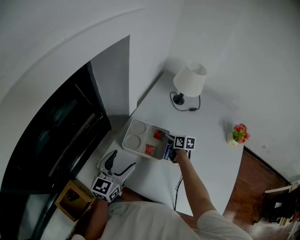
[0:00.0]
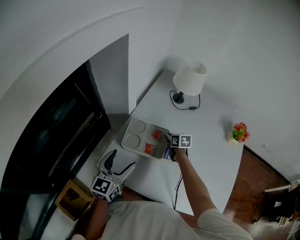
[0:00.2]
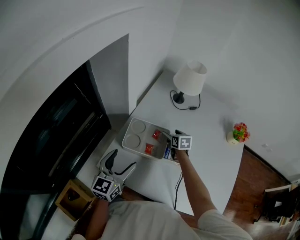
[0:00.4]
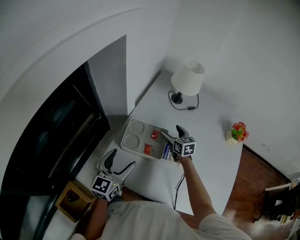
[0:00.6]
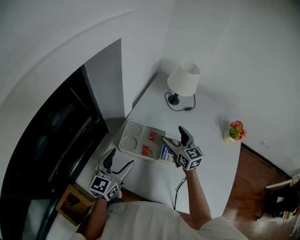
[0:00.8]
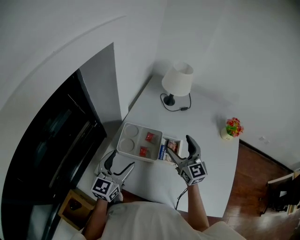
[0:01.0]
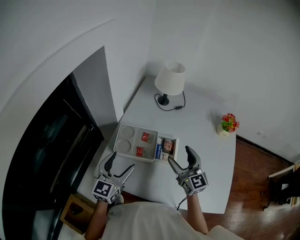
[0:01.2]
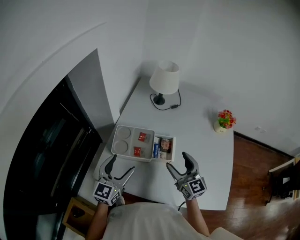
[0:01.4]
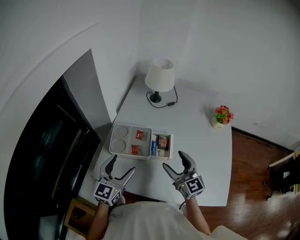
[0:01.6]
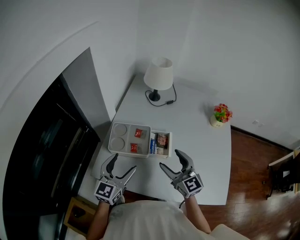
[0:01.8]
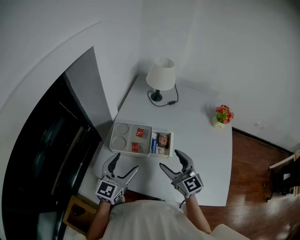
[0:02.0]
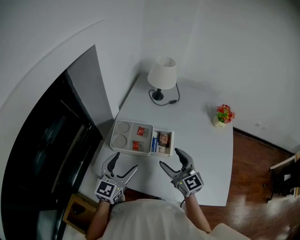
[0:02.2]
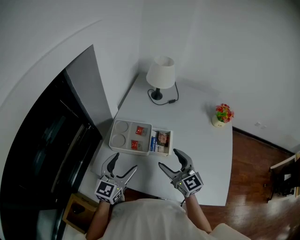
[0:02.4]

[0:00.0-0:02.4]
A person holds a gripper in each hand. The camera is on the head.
0:00.0 to 0:01.2: The right gripper moves upward and backward, approximately 25 cm, angles its fingers upward, by roughly 30 degrees, and opens.
0:01.2 to 0:02.4: The left gripper moves approximately 5 cm. Meanwhile the right gripper goes roughly 5 cm backward.

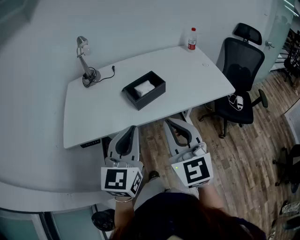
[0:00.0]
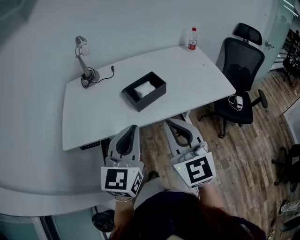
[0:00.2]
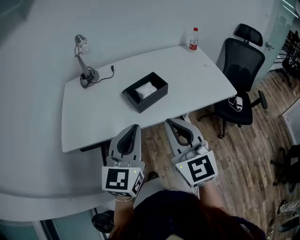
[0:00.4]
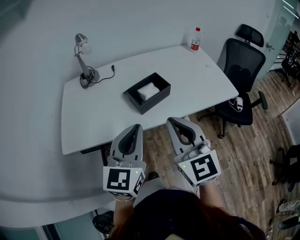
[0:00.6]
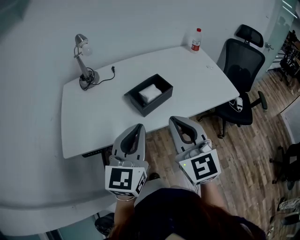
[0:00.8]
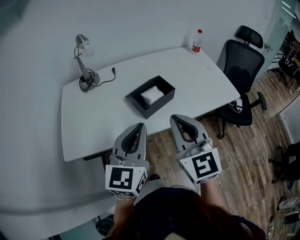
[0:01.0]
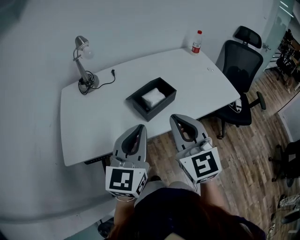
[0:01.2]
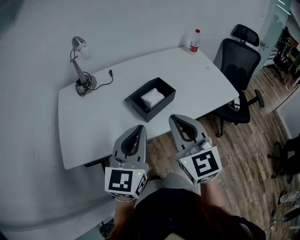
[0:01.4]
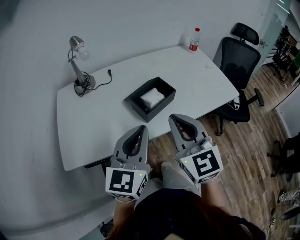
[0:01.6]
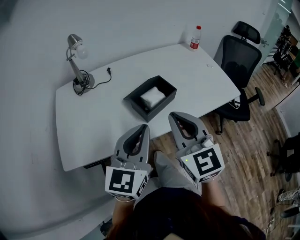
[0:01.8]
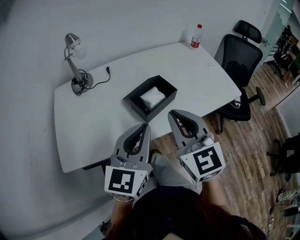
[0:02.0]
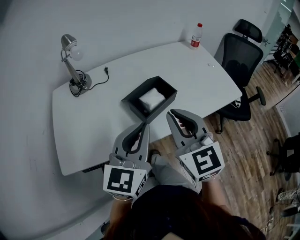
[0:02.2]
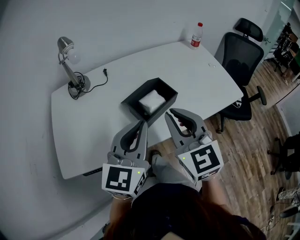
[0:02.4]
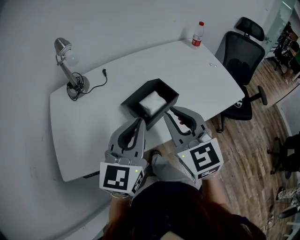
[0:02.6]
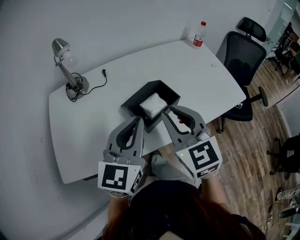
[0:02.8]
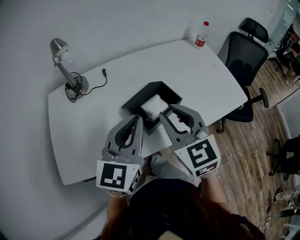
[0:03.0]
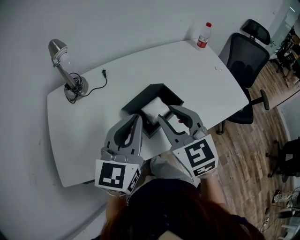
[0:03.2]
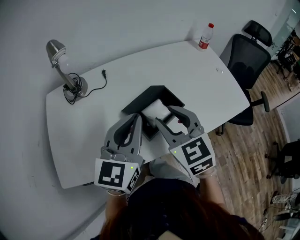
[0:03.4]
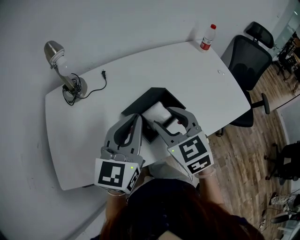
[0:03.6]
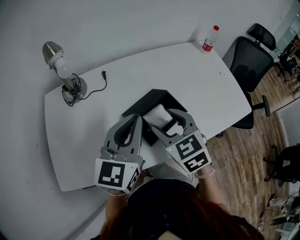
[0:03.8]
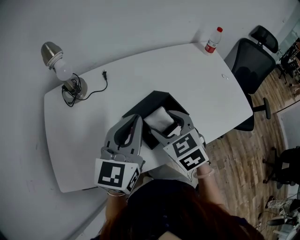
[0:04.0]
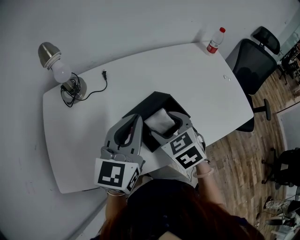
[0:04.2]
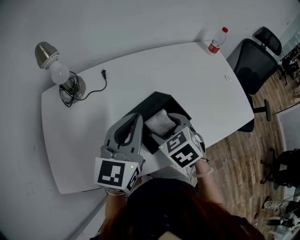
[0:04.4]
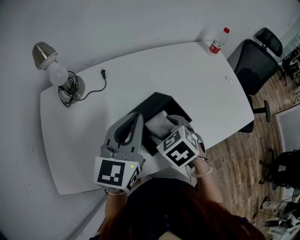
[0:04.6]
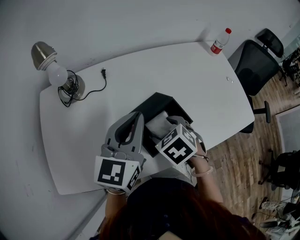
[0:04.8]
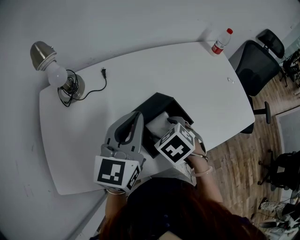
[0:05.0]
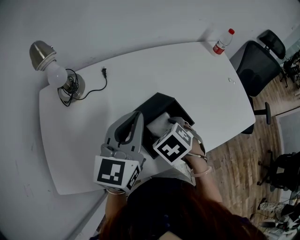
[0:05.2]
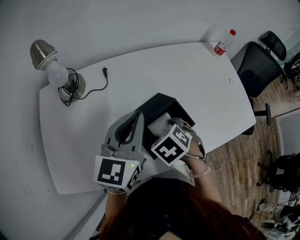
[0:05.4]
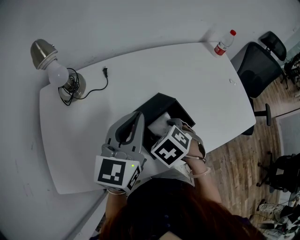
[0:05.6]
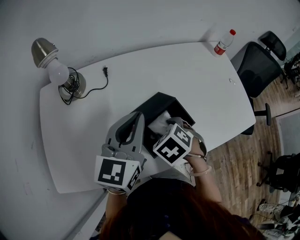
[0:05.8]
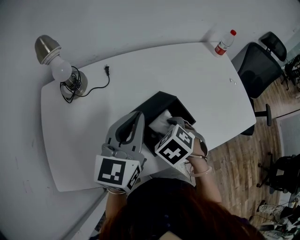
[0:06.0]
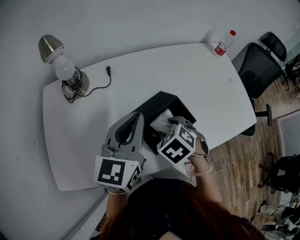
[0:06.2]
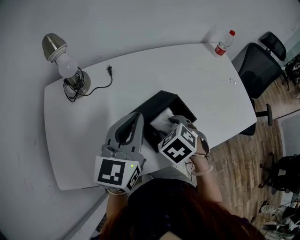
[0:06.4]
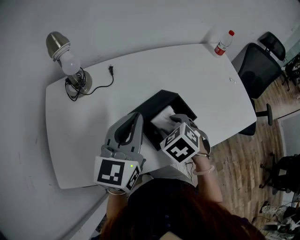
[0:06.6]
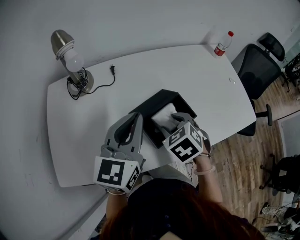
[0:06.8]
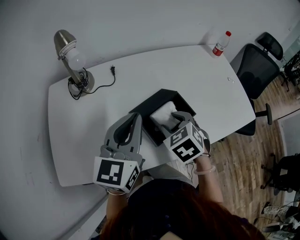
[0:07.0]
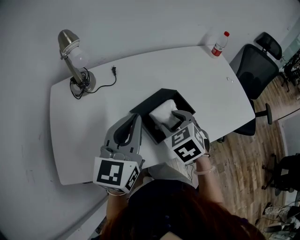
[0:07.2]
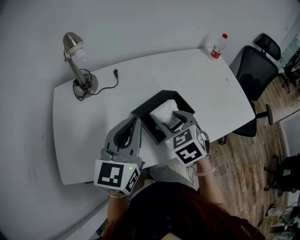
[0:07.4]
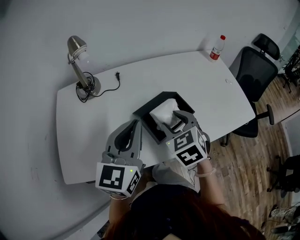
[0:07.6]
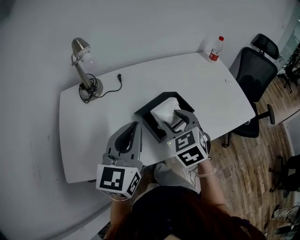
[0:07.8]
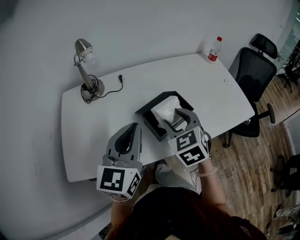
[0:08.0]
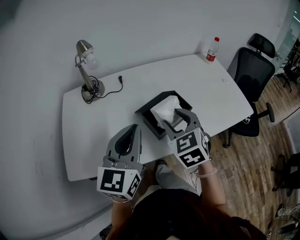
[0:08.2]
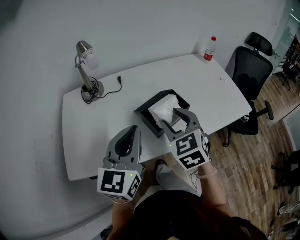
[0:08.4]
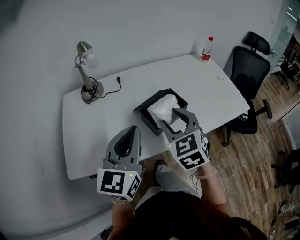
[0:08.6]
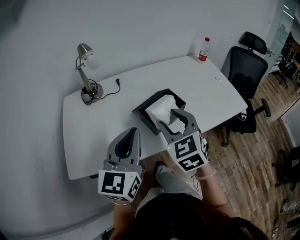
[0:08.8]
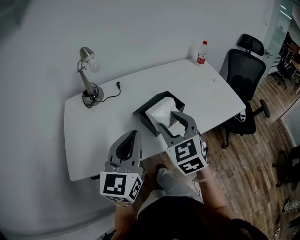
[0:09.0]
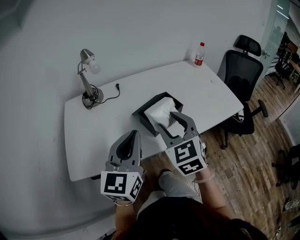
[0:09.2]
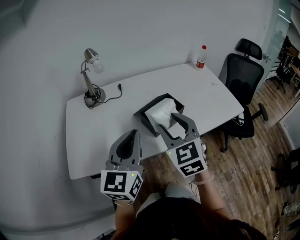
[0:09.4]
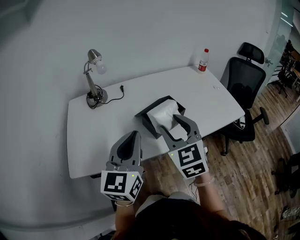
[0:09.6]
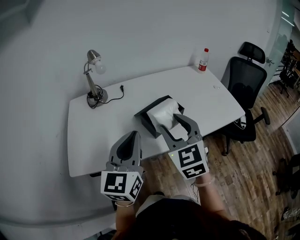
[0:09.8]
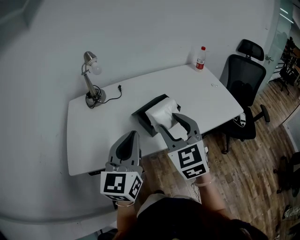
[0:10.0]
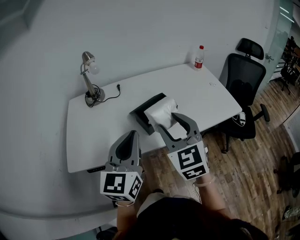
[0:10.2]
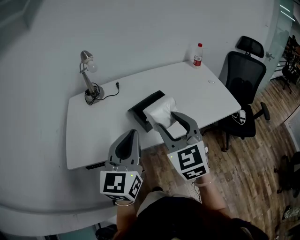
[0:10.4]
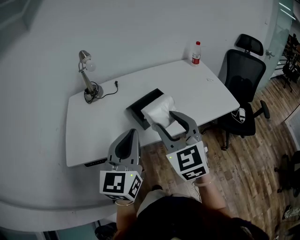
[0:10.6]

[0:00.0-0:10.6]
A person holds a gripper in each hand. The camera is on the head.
0:00.0 to 0:01.6: The left gripper travels forward by approximately 10 cm, while the right gripper goes some 10 cm forward and to the left.
0:01.6 to 0:03.0: The two grippers go some 10 cm forward.
0:03.0 to 0:04.6: The left gripper is displaced forward by about 10 cm; the right gripper heads downward and forward, covering about 20 cm, points its fingers approximately 40 degrees further downward, and opens up.
0:04.6 to 0:06.0: The grippers move only a little.
0:06.0 to 0:07.6: The left gripper heads backward, covering about 10 cm. The right gripper is displaced upward by about 10 cm, and rotates approximately 30 degrees.
0:07.6 to 0:09.0: The left gripper travels backward by approximately 10 cm. The right gripper shifts about 10 cm backward and upward.
0:09.0 to 0:10.6: The right gripper goes approximately 10 cm backward and to the right. Meanwhile the left gripper heads to the right and backward, covering approximately 10 cm.

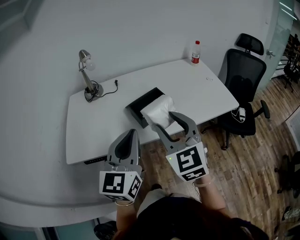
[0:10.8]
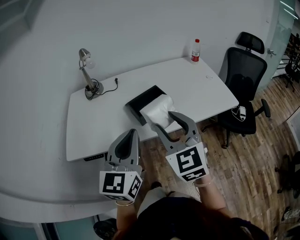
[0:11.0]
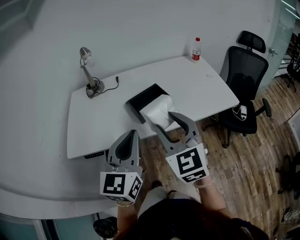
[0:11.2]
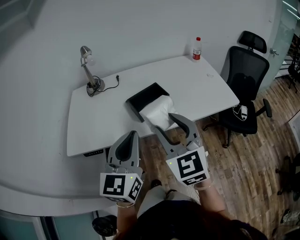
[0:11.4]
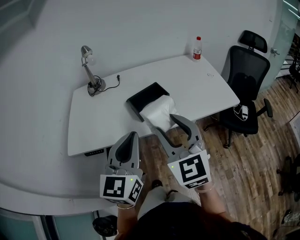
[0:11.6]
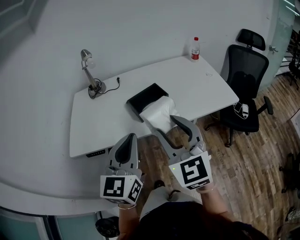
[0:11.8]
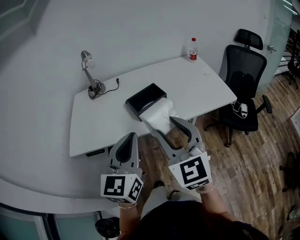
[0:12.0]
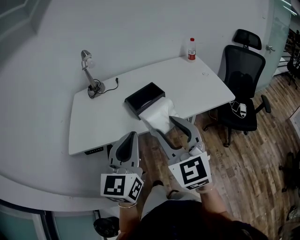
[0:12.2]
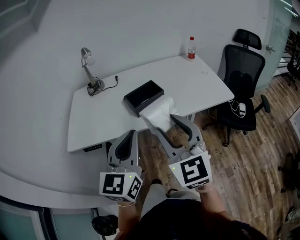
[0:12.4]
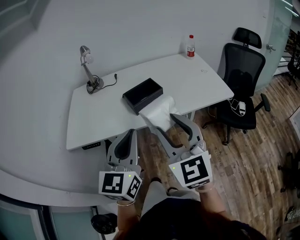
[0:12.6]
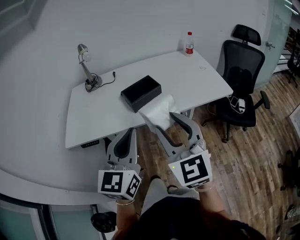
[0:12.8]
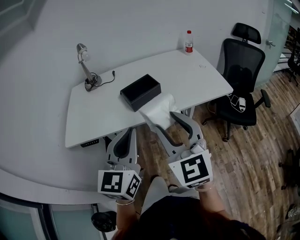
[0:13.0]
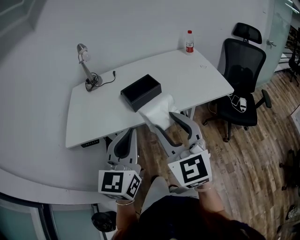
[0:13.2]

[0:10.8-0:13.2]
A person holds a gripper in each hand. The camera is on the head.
0:10.8 to 0:12.0: Both grippers move backward, roughly 5 cm.
0:12.0 to 0:13.2: There are only small adjustments of the grippers.

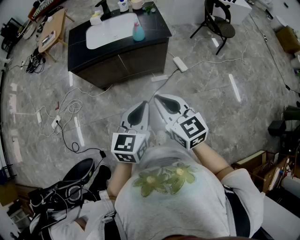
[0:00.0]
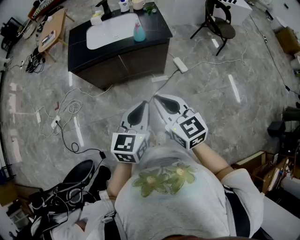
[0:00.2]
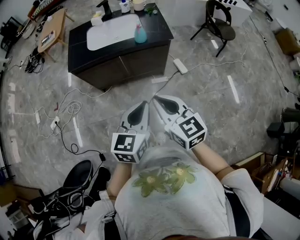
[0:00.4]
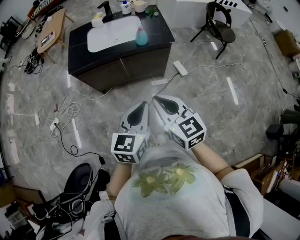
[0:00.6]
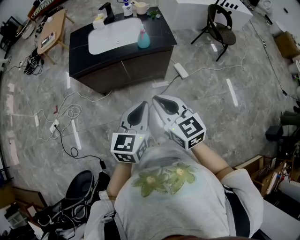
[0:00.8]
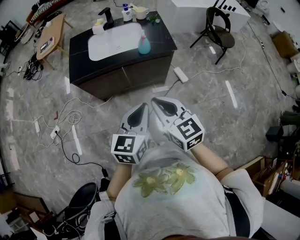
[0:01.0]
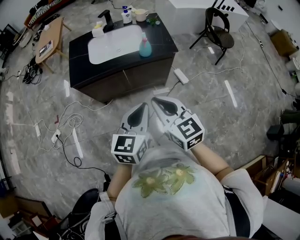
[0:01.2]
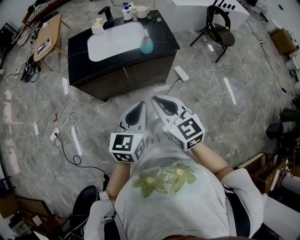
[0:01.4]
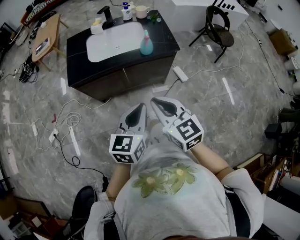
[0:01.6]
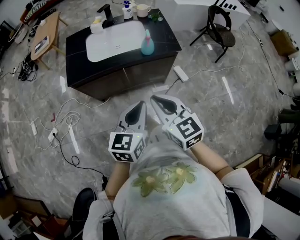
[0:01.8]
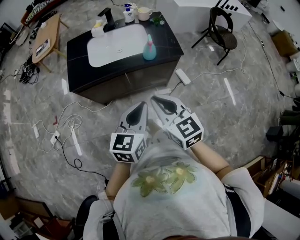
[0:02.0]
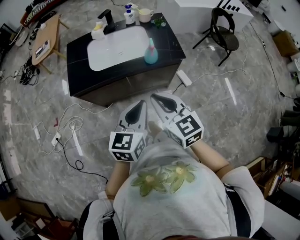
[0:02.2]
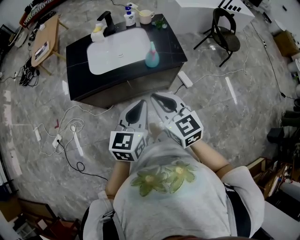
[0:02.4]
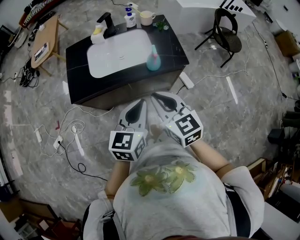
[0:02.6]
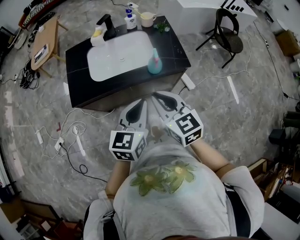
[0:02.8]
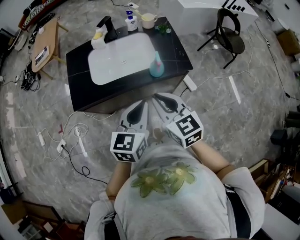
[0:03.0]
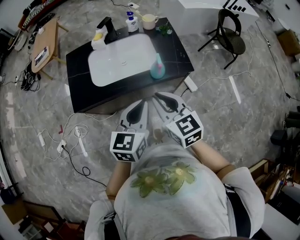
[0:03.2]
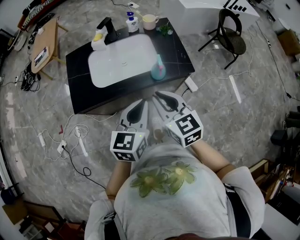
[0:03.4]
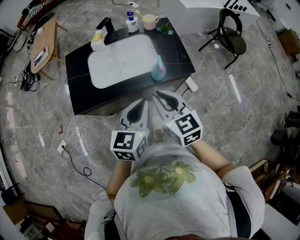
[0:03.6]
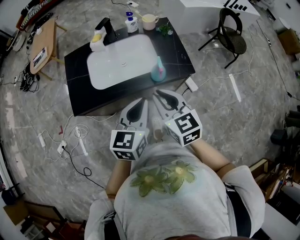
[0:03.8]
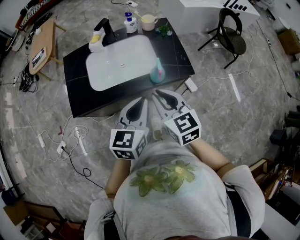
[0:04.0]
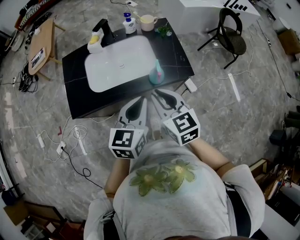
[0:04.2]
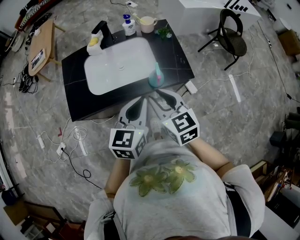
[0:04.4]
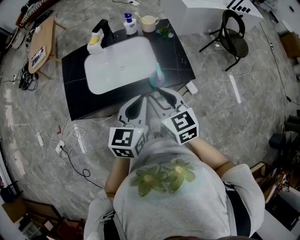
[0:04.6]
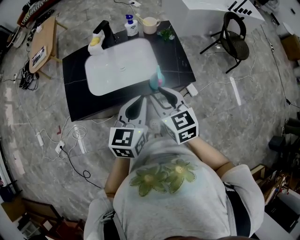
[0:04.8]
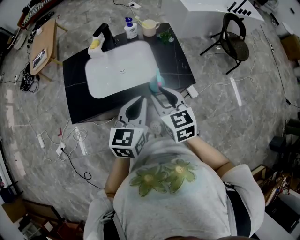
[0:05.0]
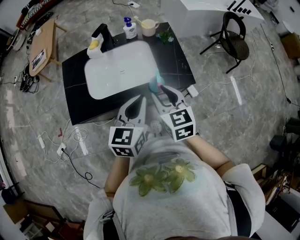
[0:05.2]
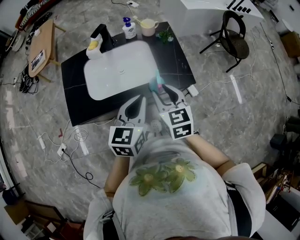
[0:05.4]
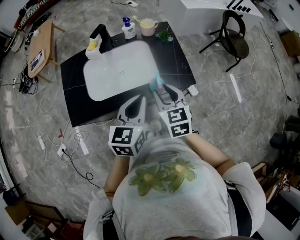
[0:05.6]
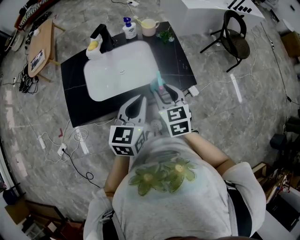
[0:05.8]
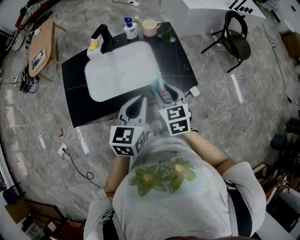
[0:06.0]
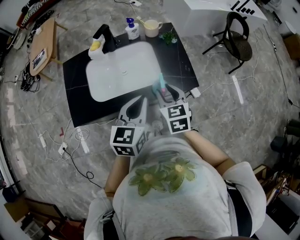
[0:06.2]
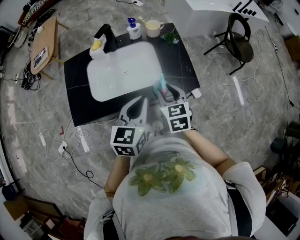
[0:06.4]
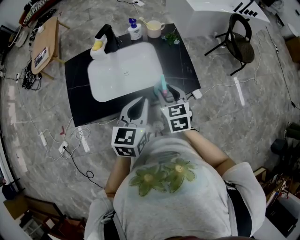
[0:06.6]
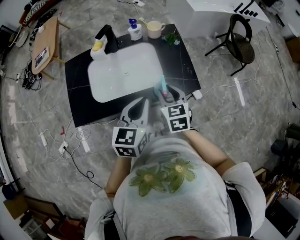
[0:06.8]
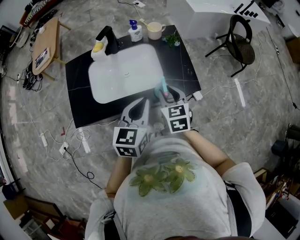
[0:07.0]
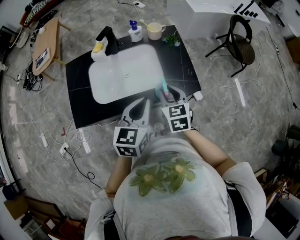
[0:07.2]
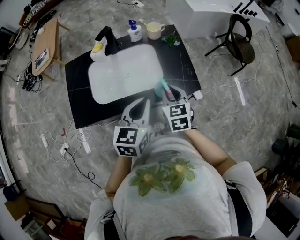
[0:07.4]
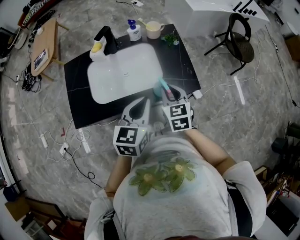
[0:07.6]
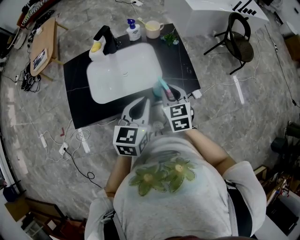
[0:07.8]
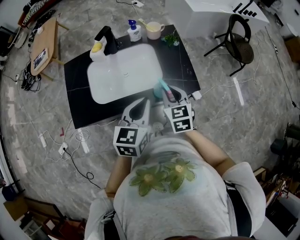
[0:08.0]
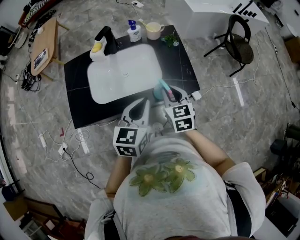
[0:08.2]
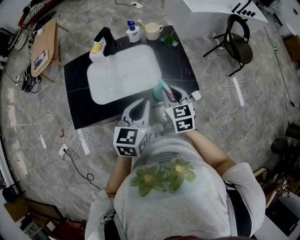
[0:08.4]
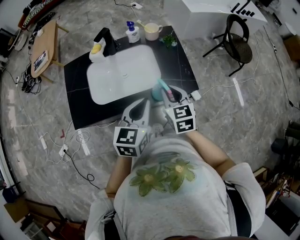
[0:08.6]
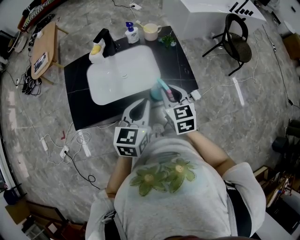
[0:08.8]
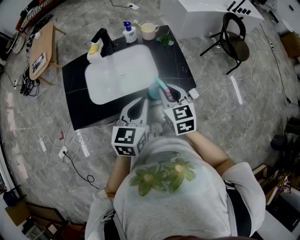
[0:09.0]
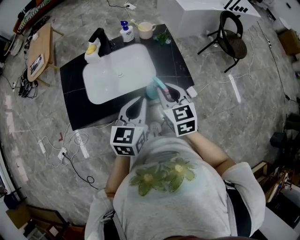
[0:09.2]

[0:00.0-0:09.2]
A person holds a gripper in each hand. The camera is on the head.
0:00.0 to 0:01.6: Both grippers move forward and to the left, about 15 cm.
0:01.6 to 0:03.0: Both grippers move forward, about 20 cm.
0:03.0 to 0:04.6: The grippers both shift forward by approximately 10 cm.
0:04.6 to 0:06.2: The left gripper changes place by some 5 cm. The right gripper heads forward and downward, covering approximately 10 cm.
0:06.2 to 0:07.6: There are only small adjustments of the grippers.
0:07.6 to 0:09.2: The right gripper heads upward, covering some 5 cm.
